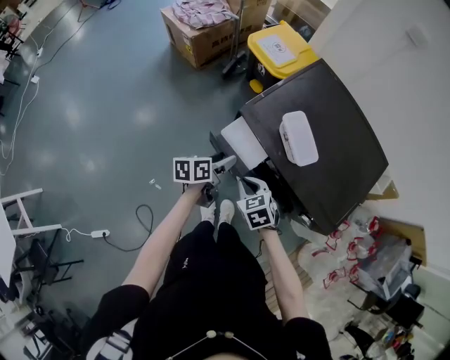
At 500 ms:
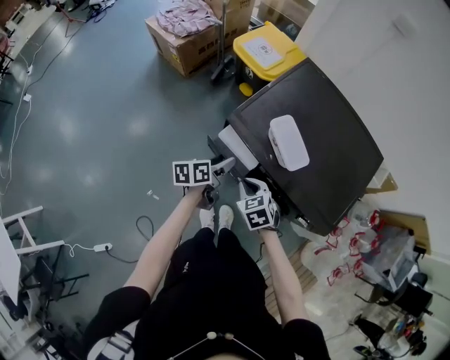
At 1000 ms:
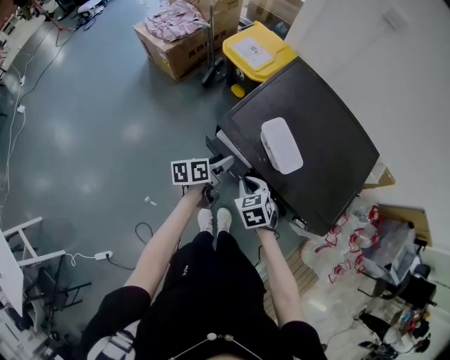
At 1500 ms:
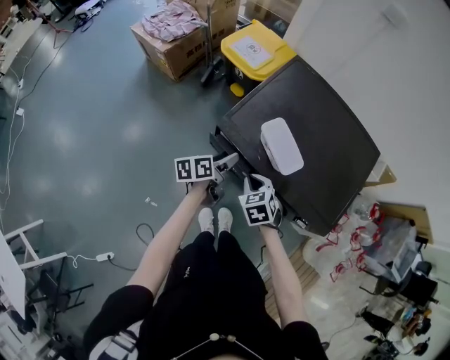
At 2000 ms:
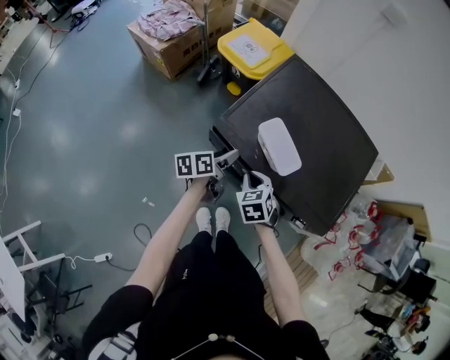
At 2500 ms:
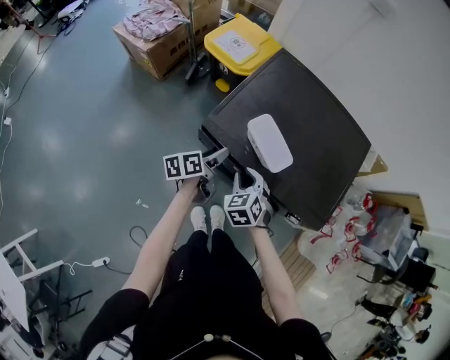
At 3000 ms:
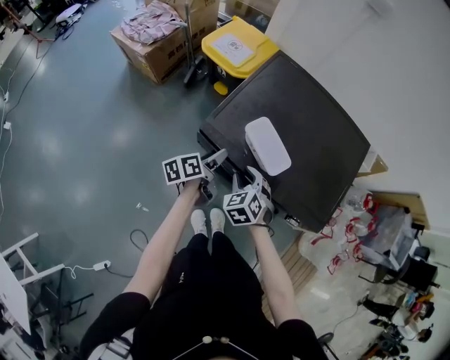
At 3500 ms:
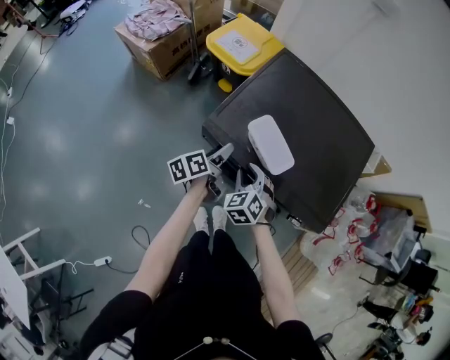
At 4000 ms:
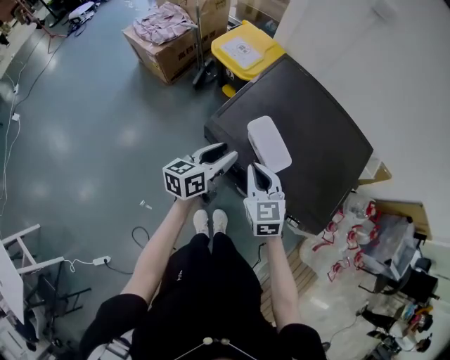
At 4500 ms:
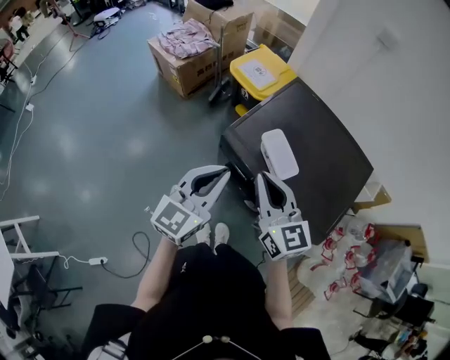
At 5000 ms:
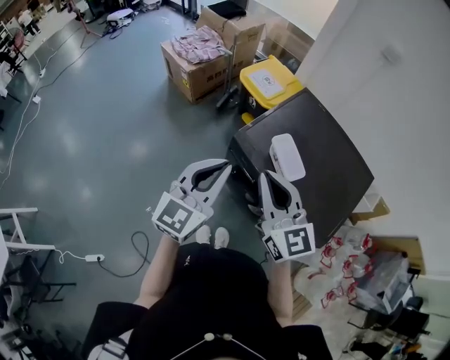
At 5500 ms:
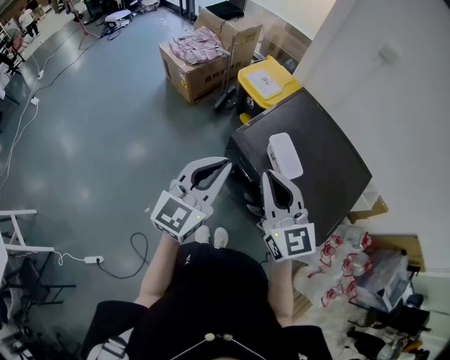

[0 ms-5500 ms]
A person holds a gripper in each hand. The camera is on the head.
0 ms to 2000 ms: The grippers both shift forward and to the right by some 10 cm.
2000 ms to 3500 ms: The right gripper opens.
3500 ms to 5500 ms: The left gripper heads upward and backward, covering about 35 cm, twists roughly 70 degrees clockwise, seen from behind, and closes its fingers. Meanwhile the right gripper shifts about 30 cm upward, angles its fingers upward, by some 50 degrees, and closes up.

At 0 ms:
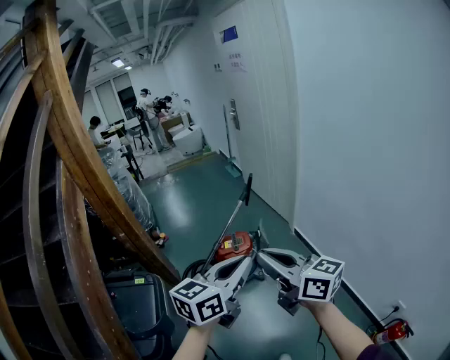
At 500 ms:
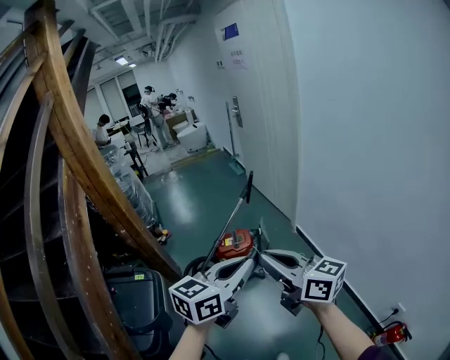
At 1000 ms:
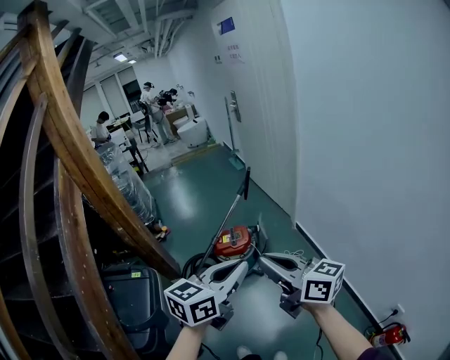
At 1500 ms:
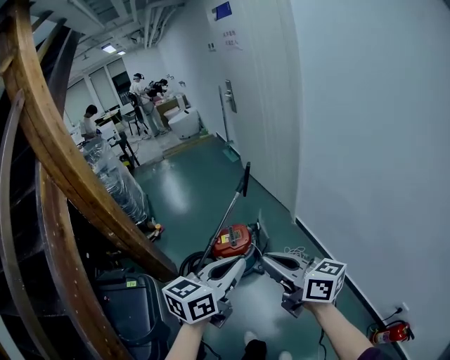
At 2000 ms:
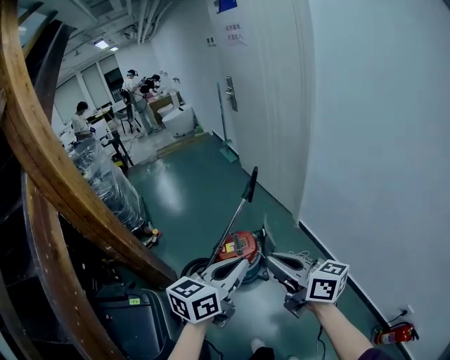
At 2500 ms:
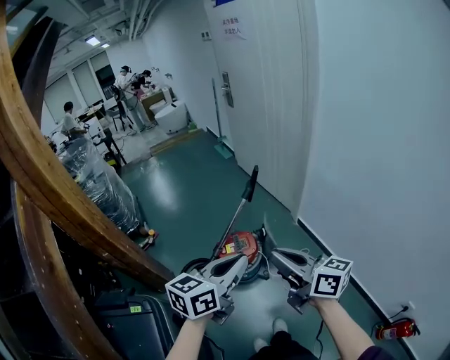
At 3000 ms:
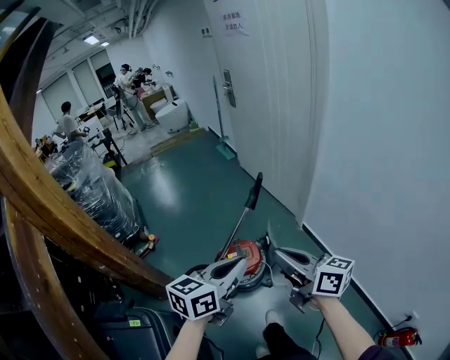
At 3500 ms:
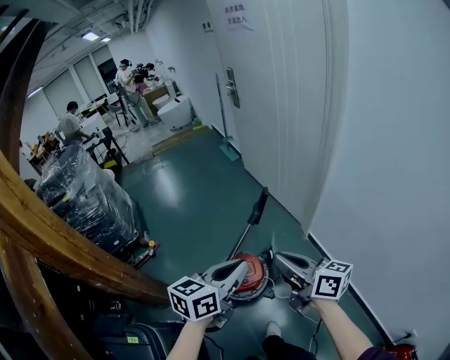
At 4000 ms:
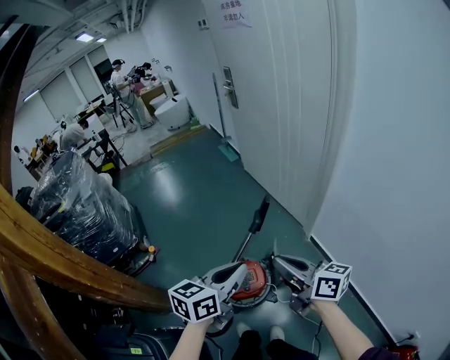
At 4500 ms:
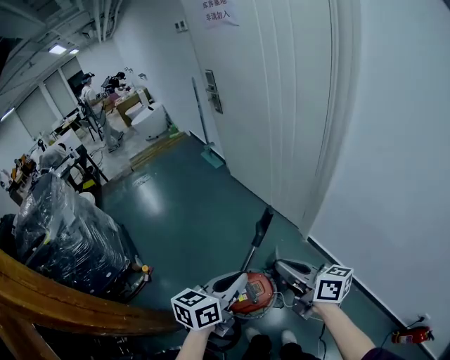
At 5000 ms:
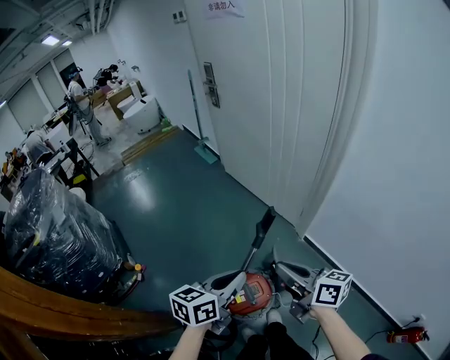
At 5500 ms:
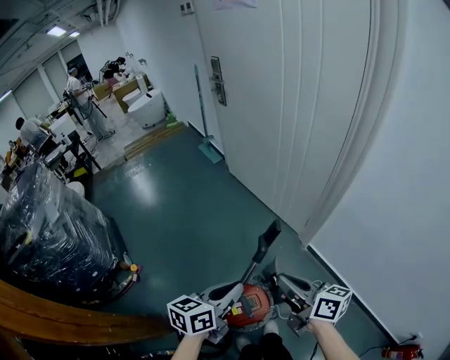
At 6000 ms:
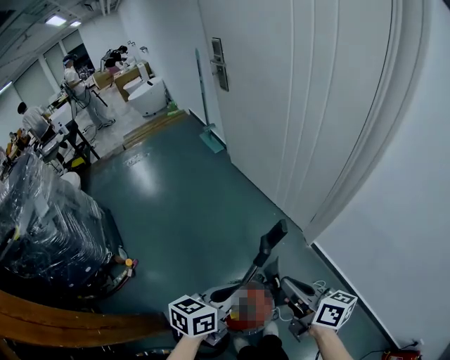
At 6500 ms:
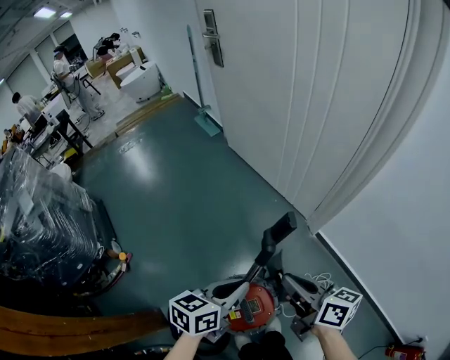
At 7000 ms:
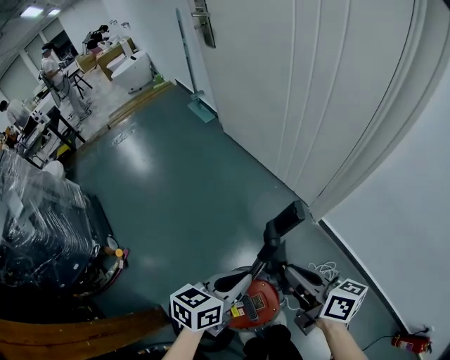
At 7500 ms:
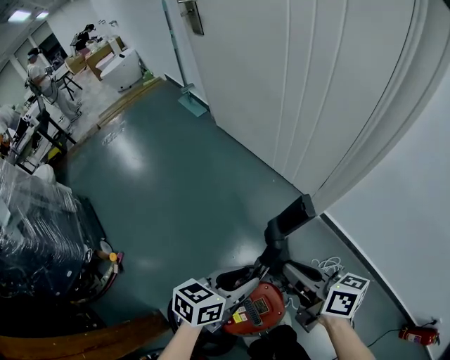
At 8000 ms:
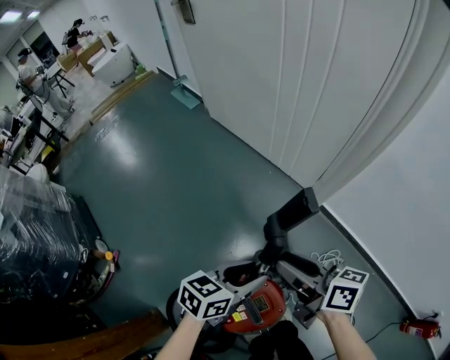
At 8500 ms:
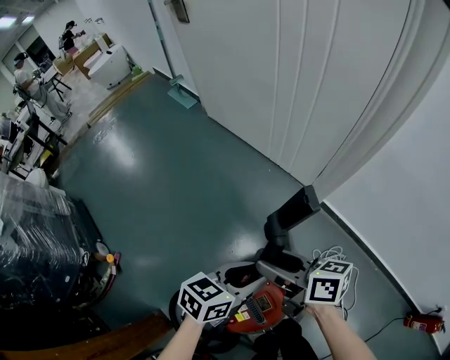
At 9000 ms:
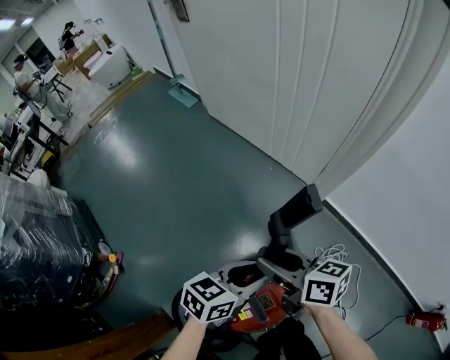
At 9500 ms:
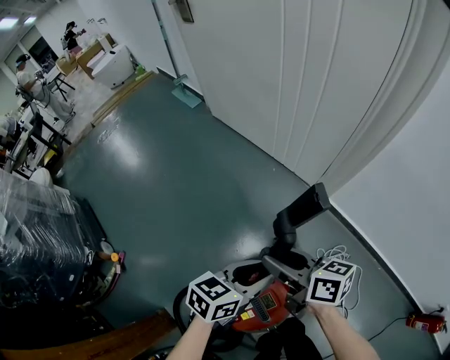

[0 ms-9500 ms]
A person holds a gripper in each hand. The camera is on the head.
0 ms to 2000 ms: The right gripper heads forward and downward, covering roughly 20 cm; the left gripper heads forward, covering some 20 cm.
2000 ms to 4000 ms: Both grippers travel together forward, some 30 cm.
4000 ms to 5500 ms: The grippers both shift forward, downward and to the left by roughly 20 cm.
5500 ms to 7500 ms: The left gripper shifts roughly 25 cm downward, and opens. The right gripper travels downward and forward by approximately 25 cm.
7500 ms to 9500 ms: The right gripper goes approximately 5 cm to the left, and opens.

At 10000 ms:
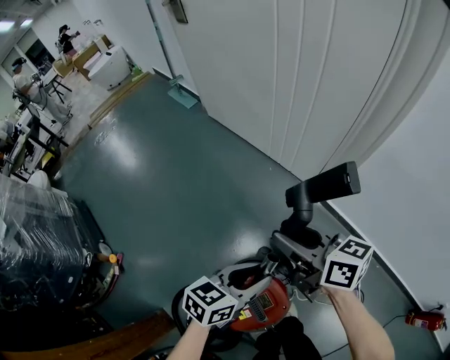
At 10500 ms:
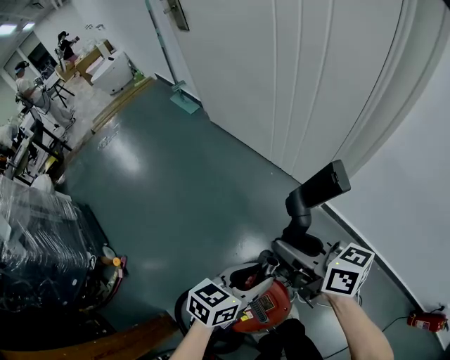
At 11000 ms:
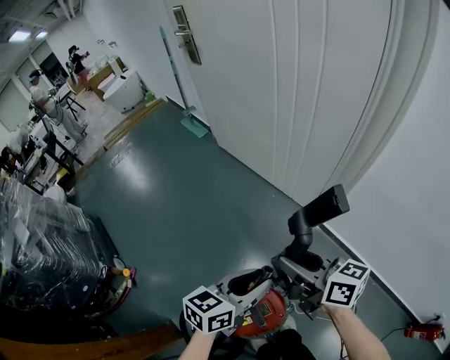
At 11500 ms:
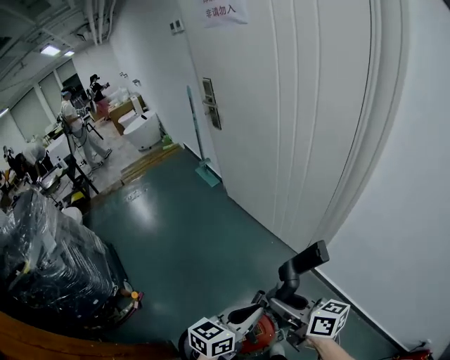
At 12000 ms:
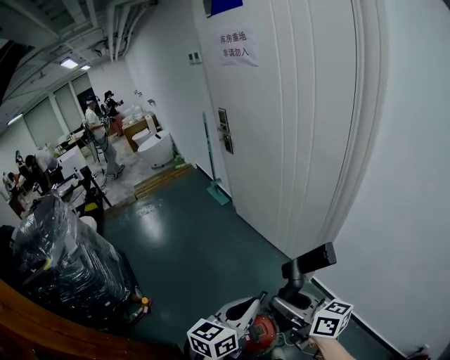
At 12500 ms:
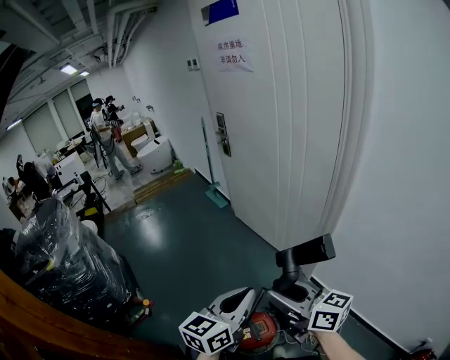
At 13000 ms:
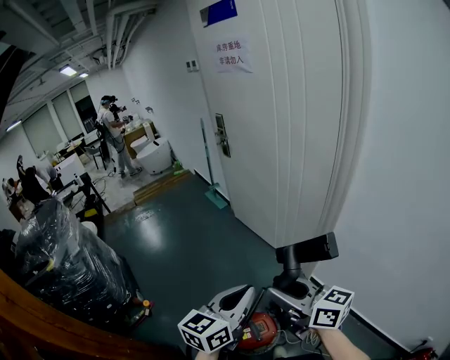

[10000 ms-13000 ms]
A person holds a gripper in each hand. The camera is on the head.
10000 ms to 11500 ms: The left gripper moves upward, about 30 cm, and closes. Meanwhile the right gripper is displaced upward and backward by approximately 25 cm.
11500 ms to 13000 ms: The right gripper is displaced upward and backward by approximately 20 cm; the left gripper heads upward, covering approximately 20 cm.

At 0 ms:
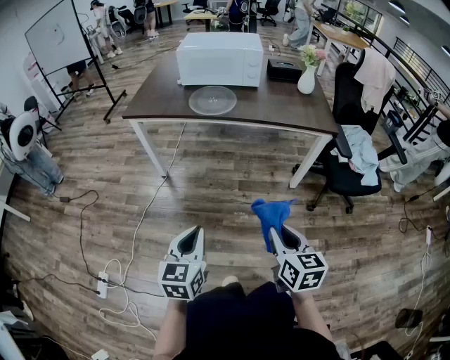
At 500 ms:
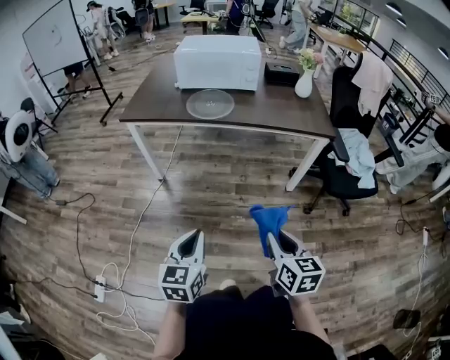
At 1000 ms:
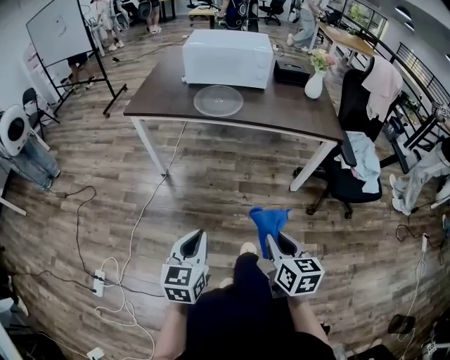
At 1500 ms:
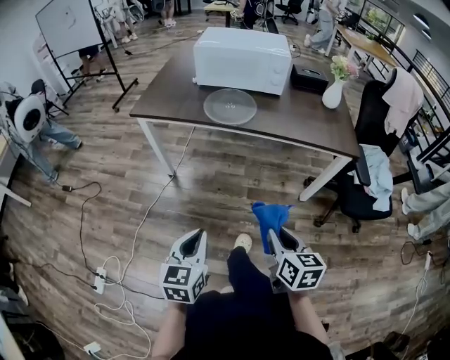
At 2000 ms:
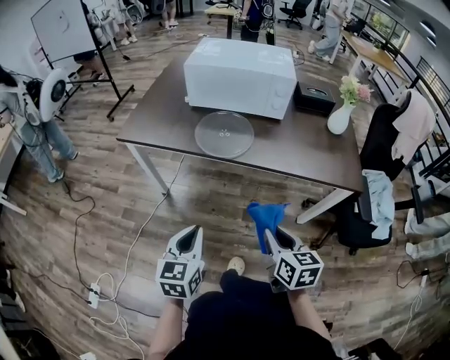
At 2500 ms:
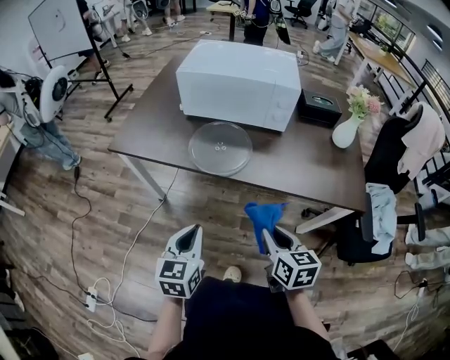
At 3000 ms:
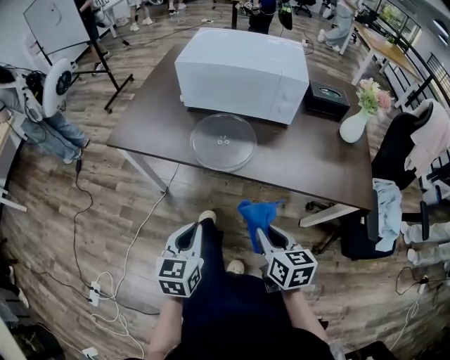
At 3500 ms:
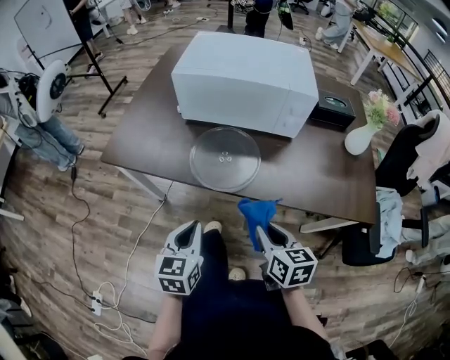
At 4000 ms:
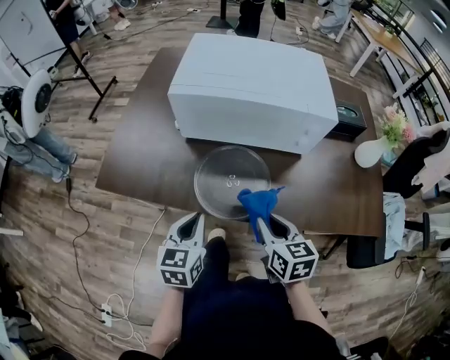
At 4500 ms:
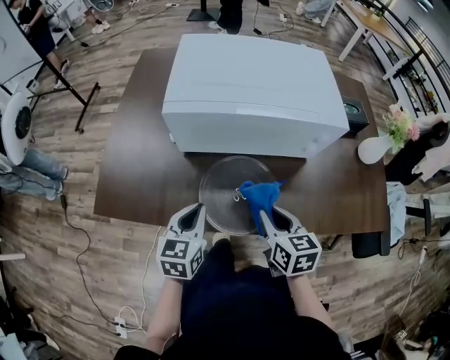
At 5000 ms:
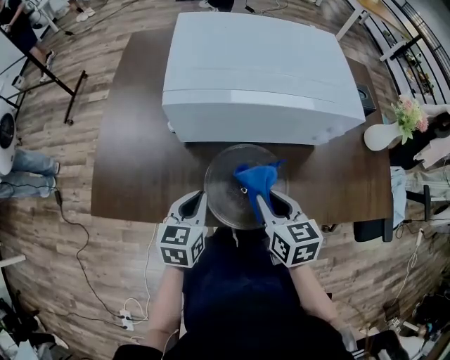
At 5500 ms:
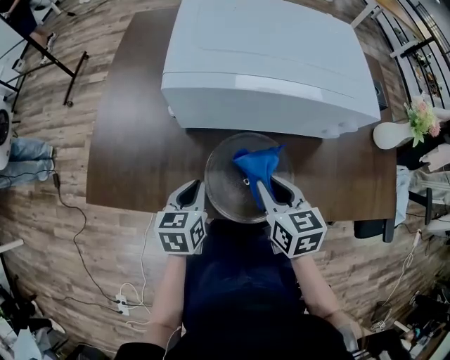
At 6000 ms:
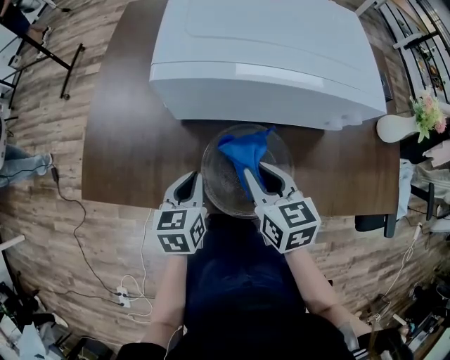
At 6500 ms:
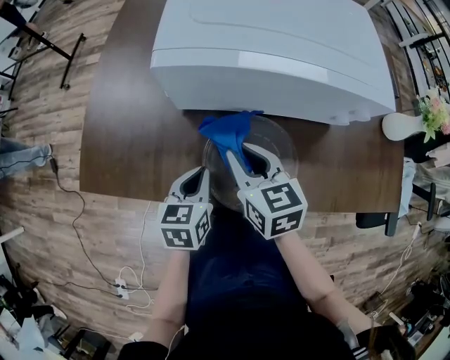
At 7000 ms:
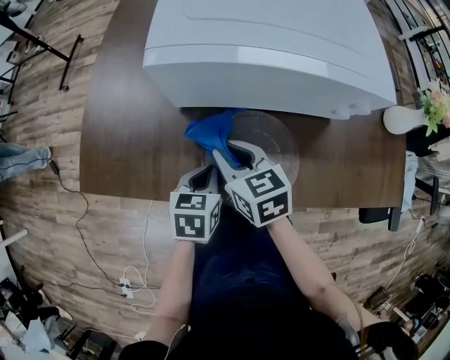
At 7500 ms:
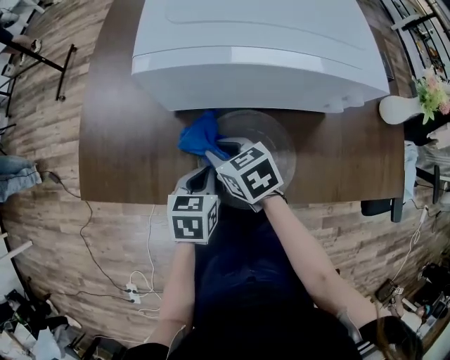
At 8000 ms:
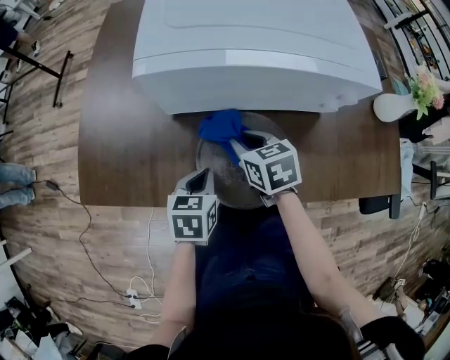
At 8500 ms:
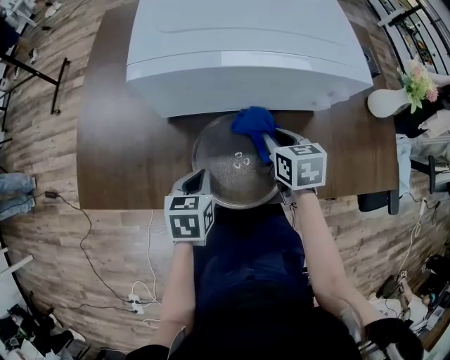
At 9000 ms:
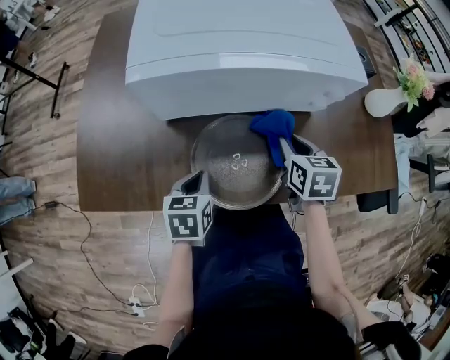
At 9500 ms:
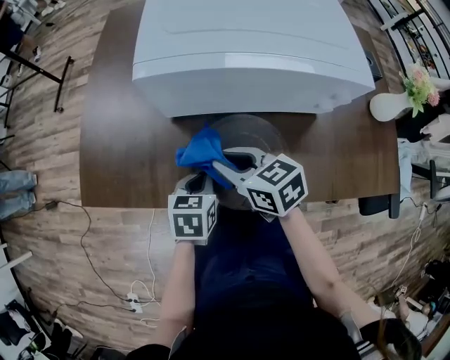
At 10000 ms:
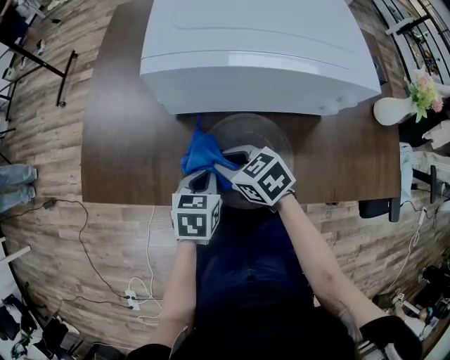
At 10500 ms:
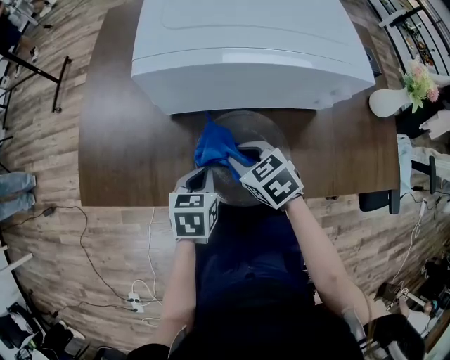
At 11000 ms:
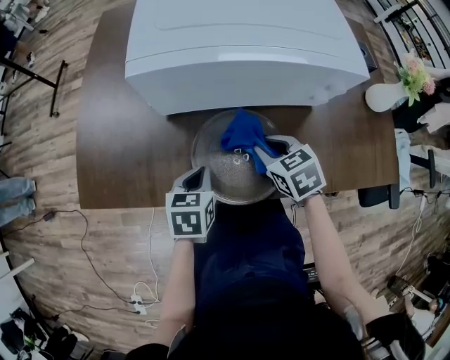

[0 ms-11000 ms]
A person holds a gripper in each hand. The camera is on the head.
0 ms to 2000 ms: The two grippers go roughly 30 cm forward.
2000 ms to 3500 ms: The two grippers go about 20 cm forward.
3500 ms to 5500 ms: The left gripper heads forward, covering roughly 25 cm. The right gripper is displaced forward and to the left by about 25 cm.
5500 ms to 7500 ms: The right gripper is displaced to the left and downward by some 10 cm, and swivels about 20 degrees.
7500 ms to 9000 ms: The right gripper heads to the right, covering approximately 20 cm, and rotates approximately 40 degrees.
9000 ms to 11000 ms: The right gripper changes its angle by approximately 30 degrees.
